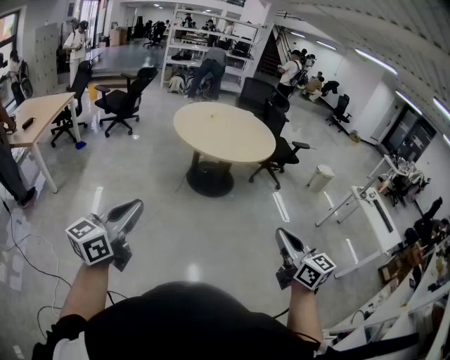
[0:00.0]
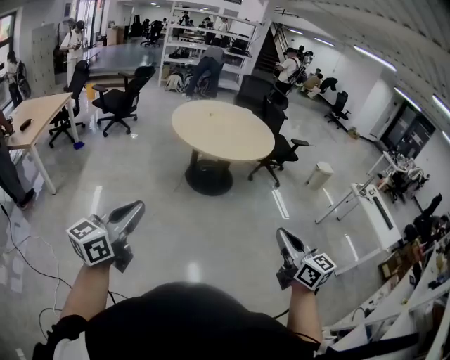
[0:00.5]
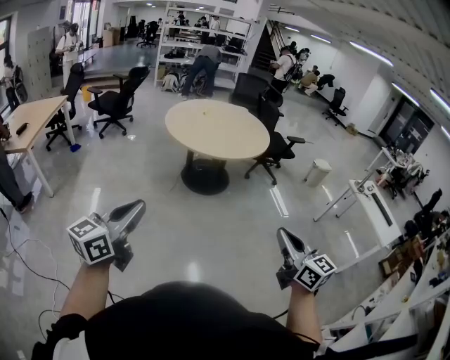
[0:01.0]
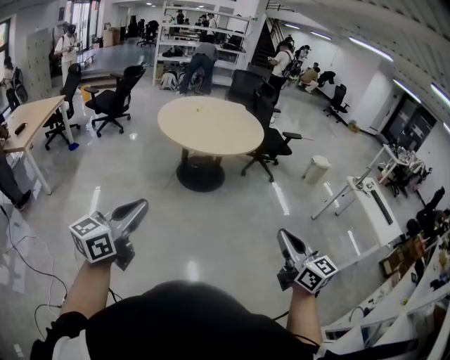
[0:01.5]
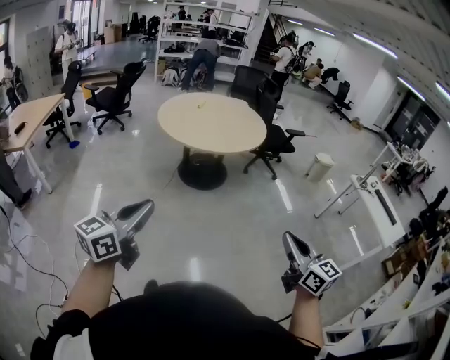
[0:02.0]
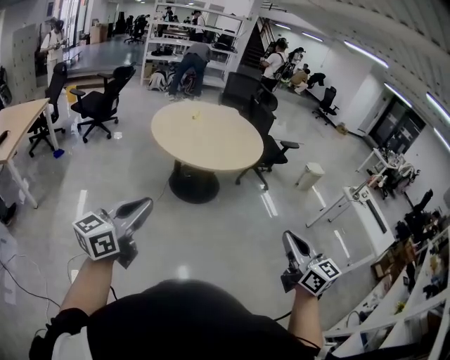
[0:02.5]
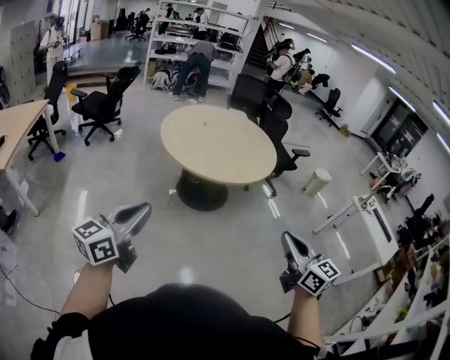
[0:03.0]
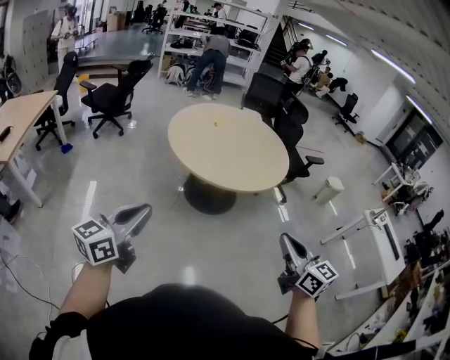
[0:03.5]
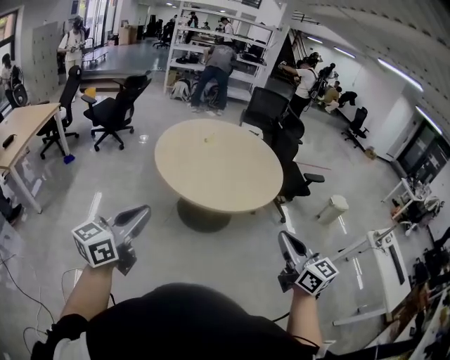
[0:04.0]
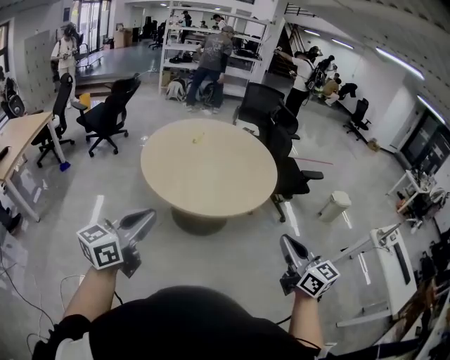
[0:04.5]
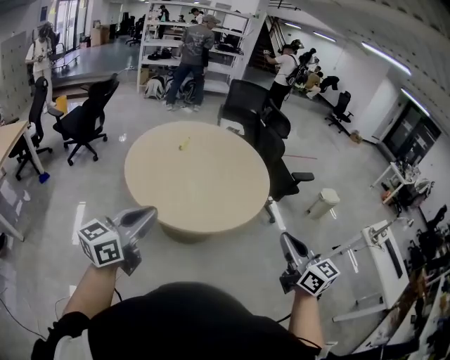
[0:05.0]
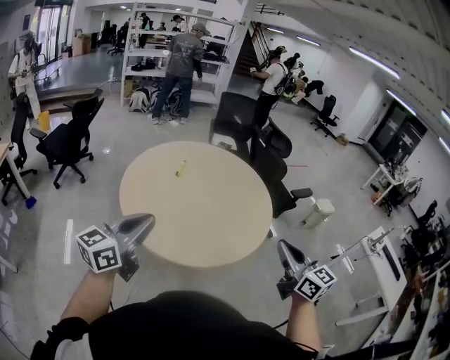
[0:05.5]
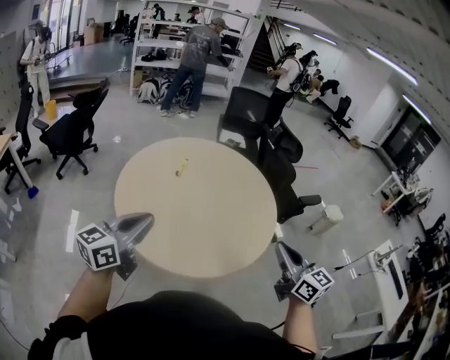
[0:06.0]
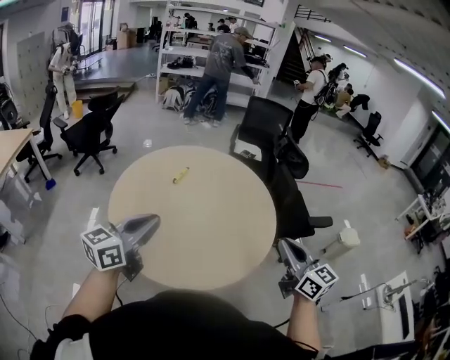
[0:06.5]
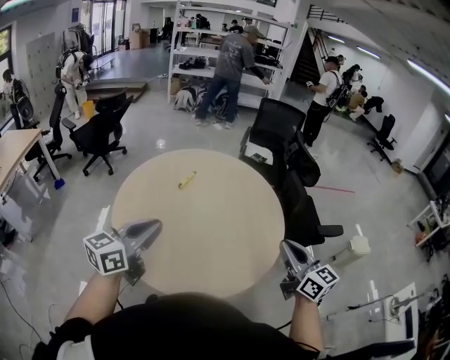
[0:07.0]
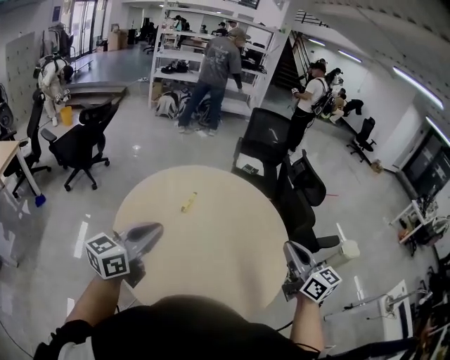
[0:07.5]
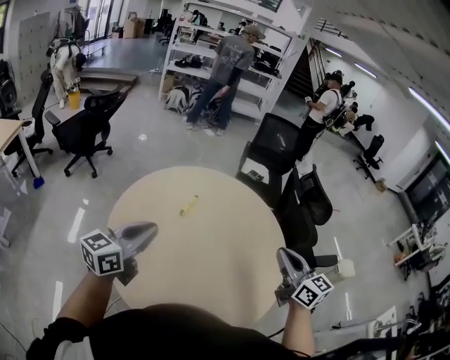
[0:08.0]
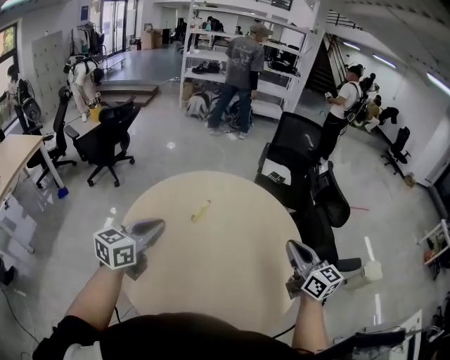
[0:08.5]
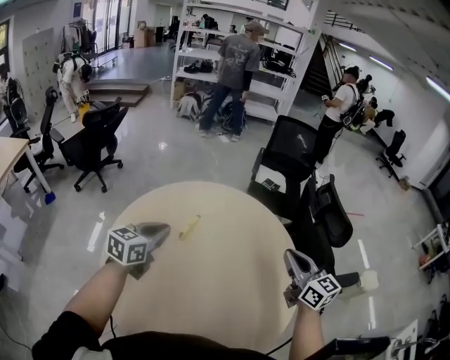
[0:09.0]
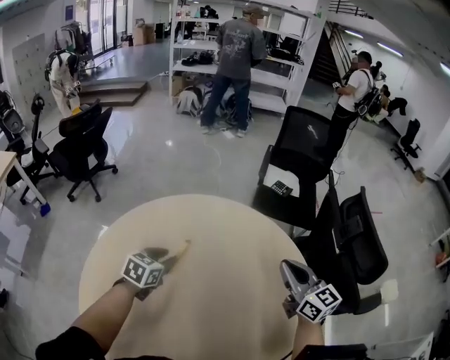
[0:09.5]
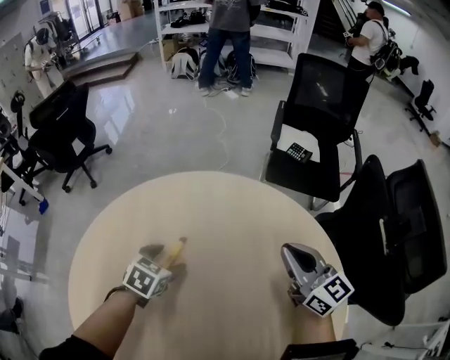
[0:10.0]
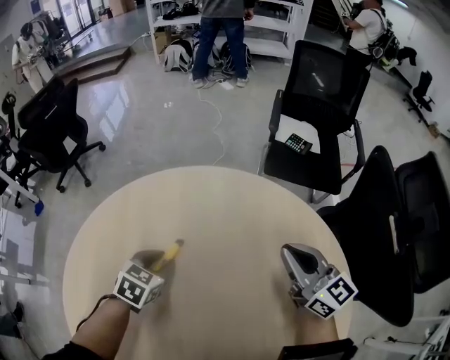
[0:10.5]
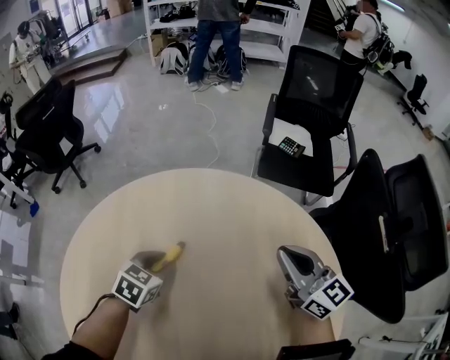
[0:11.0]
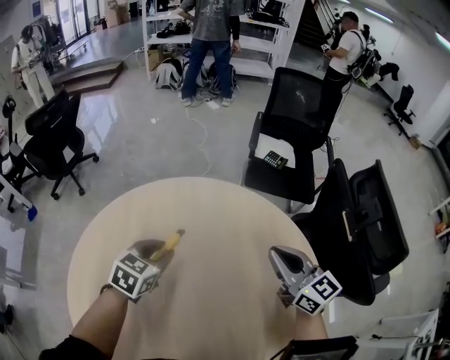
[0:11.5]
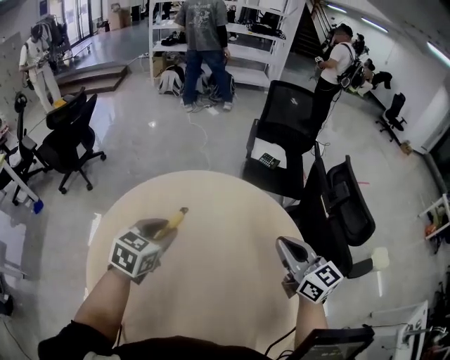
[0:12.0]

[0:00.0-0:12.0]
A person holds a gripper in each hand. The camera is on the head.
0:00.0 to 0:02.0: Both grippers move to the right, approximately 15 cm.
0:02.0 to 0:04.0: Both grippers move forward, some 40 cm.
0:04.0 to 0:06.0: The grippers both shift forward by approximately 40 cm.
0:06.0 to 0:08.0: The two grippers go approximately 25 cm forward.
0:08.0 to 0:10.0: The left gripper shifts approximately 50 cm downward and forward, tilts its fingers some 50 degrees downward, and opens up; the right gripper is displaced forward and downward by some 50 cm.
0:10.0 to 0:12.0: The right gripper goes roughly 20 cm upward and backward. Meanwhile the left gripper goes some 25 cm upward, rotates roughly 20 degrees, and closes up.

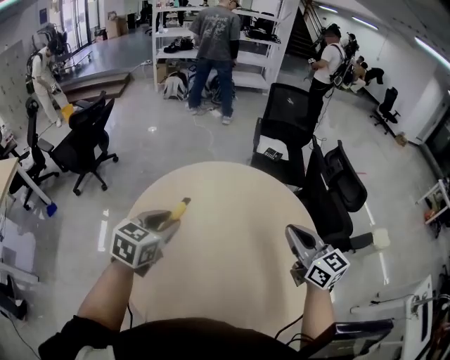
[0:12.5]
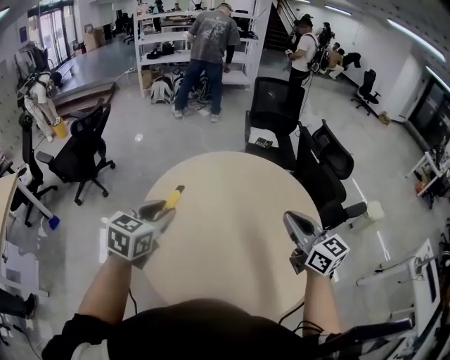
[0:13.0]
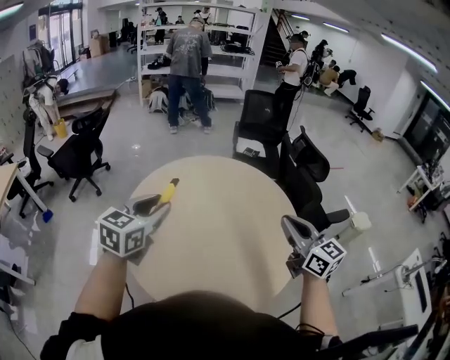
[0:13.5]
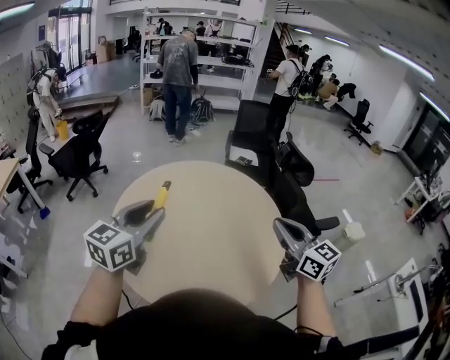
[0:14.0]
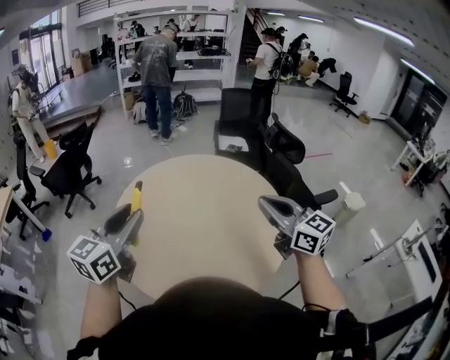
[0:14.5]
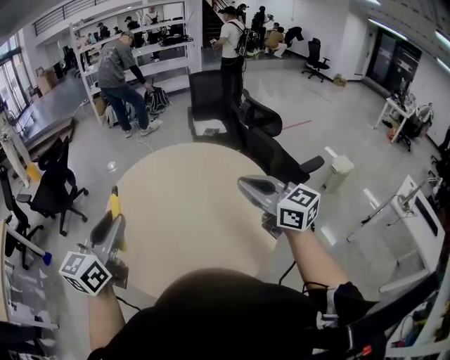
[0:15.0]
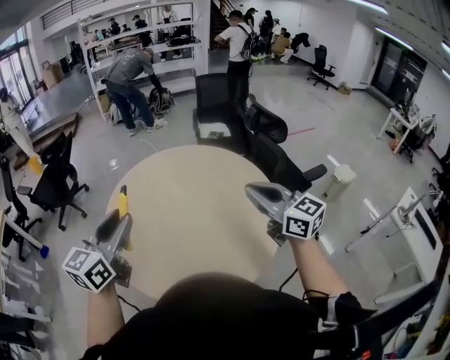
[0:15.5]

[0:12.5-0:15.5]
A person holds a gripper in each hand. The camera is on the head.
0:12.5 to 0:14.0: The grippers both shift backward and upward by roughly 25 cm. The left gripper turns by some 30 degrees.
0:14.0 to 0:15.5: The grippers make only small movements.

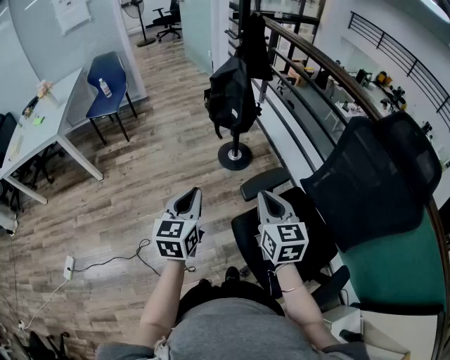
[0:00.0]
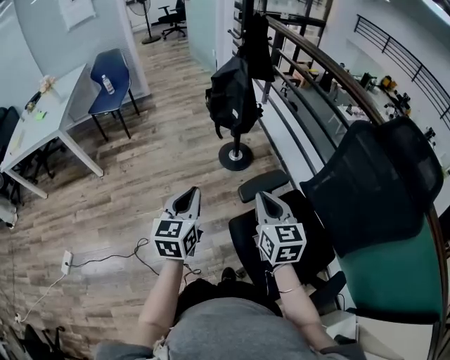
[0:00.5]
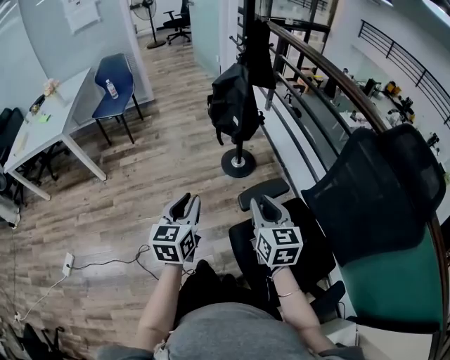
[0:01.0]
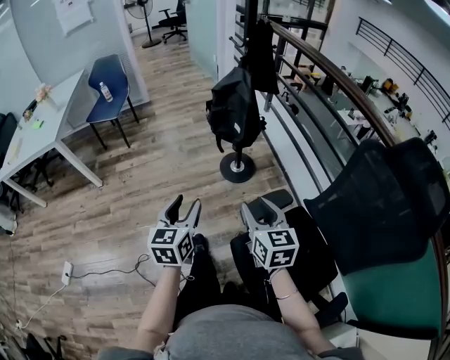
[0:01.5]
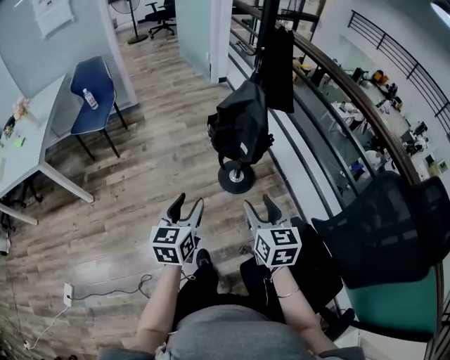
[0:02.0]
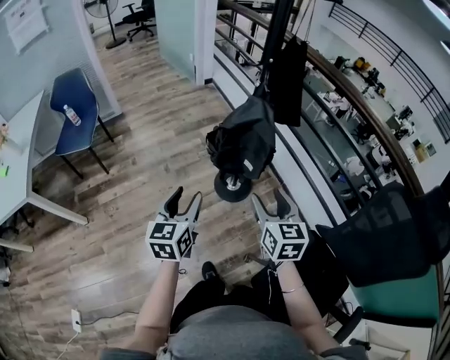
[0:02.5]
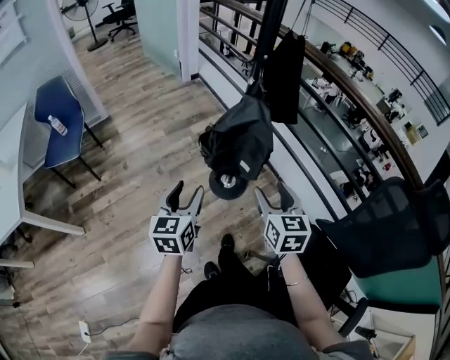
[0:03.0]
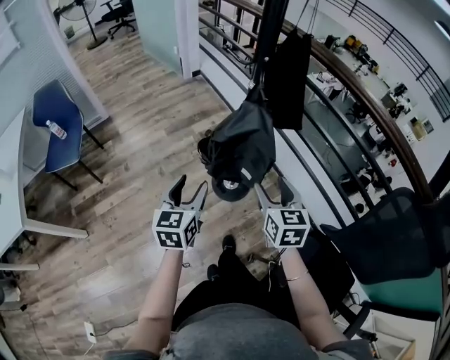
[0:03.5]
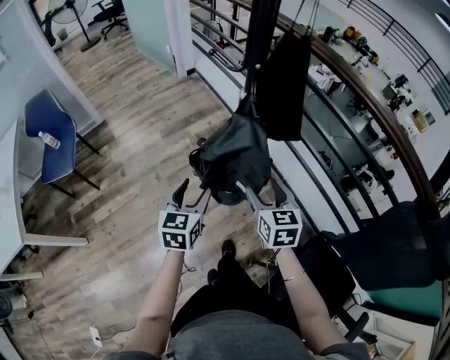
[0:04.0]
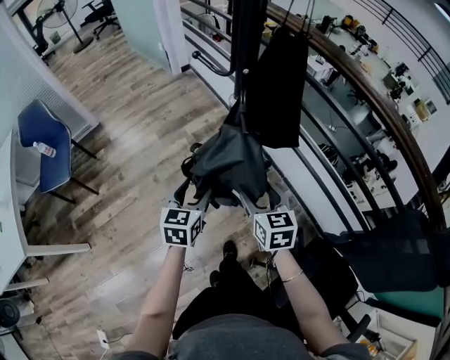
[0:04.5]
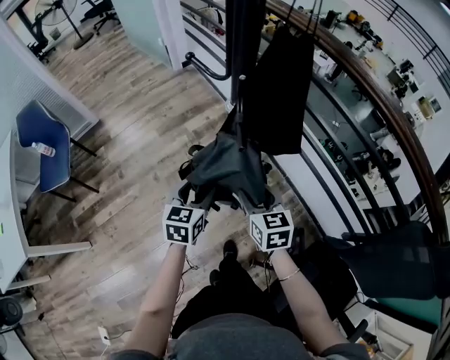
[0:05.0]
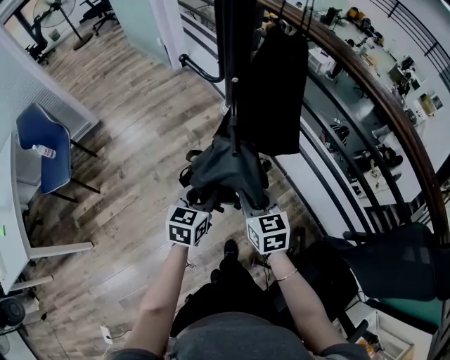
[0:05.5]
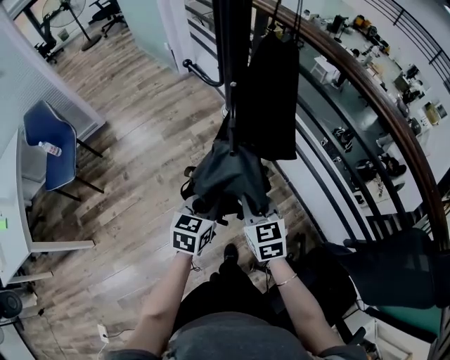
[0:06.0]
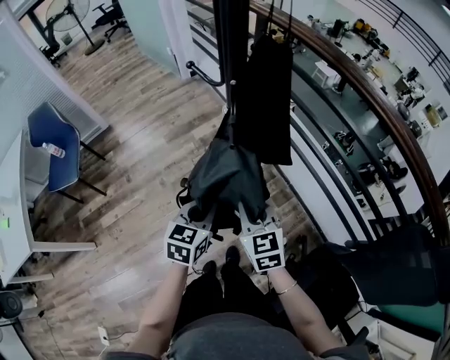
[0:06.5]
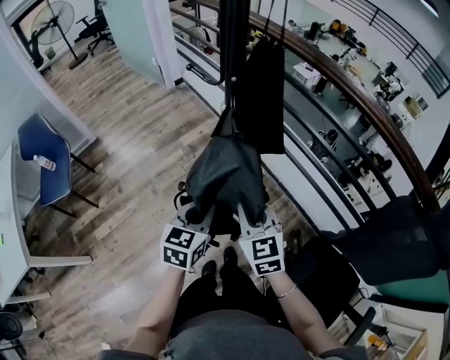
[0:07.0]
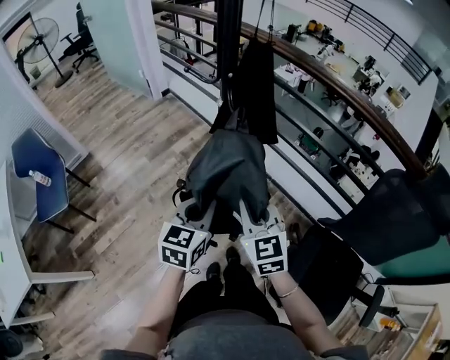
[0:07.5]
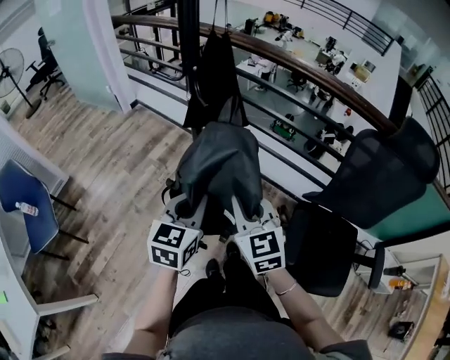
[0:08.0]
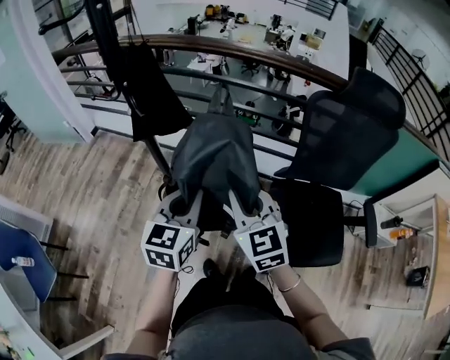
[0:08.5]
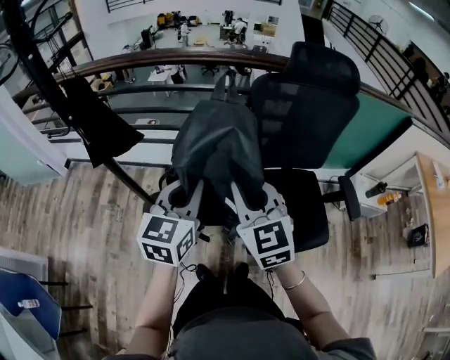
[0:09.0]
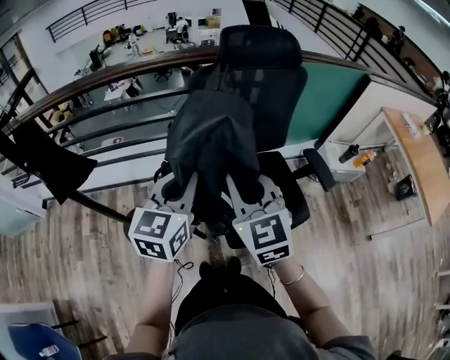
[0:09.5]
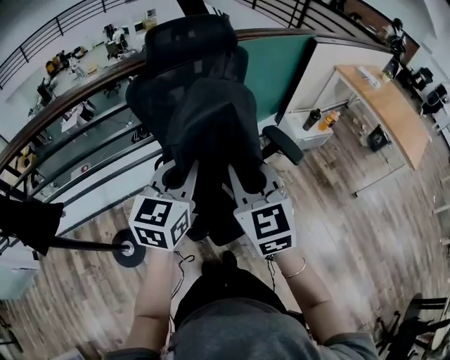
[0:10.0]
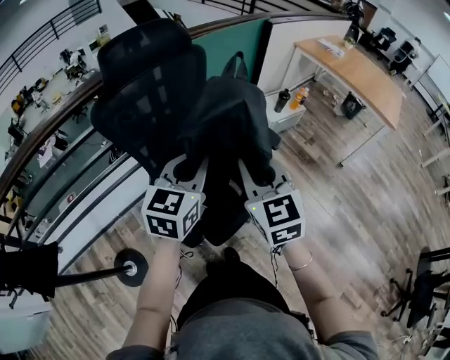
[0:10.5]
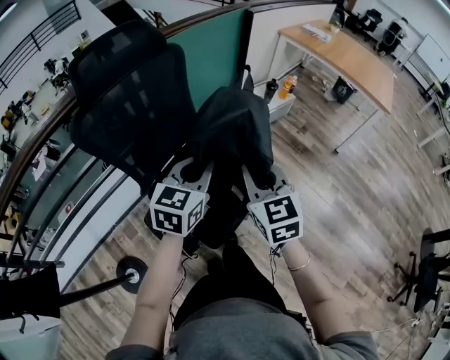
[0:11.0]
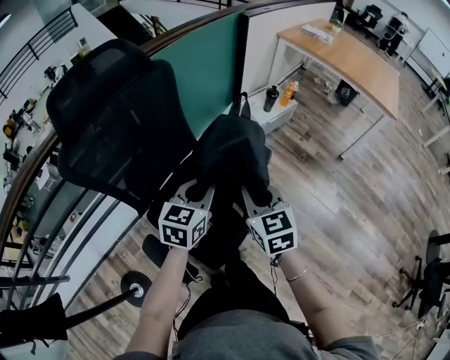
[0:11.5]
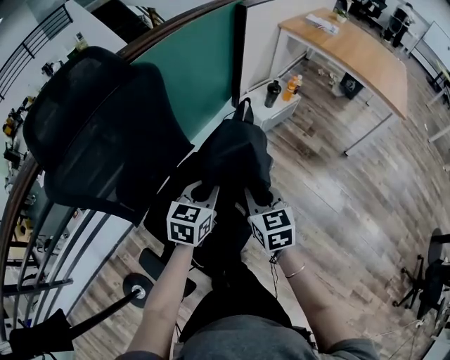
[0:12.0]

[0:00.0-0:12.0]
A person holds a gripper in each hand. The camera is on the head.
0:00.0 to 0:02.0: Both grippers travel together forward, approximately 25 cm. The right gripper opens. Meanwhile the left gripper opens its fingers.
0:02.0 to 0:04.0: The two grippers go approximately 25 cm forward.
0:04.0 to 0:06.0: The left gripper shifts about 10 cm to the right, and closes. The right gripper shifts by some 5 cm, and closes up.
0:06.0 to 0:08.0: The right gripper travels backward and upward by roughly 20 cm, and turns by about 20 degrees. The left gripper moves upward and backward, some 20 cm, and changes its angle by some 30 degrees.
0:08.0 to 0:10.0: Both grippers are carried roughly 50 cm. The left gripper changes its angle by roughly 60 degrees, while the right gripper swivels about 60 degrees.
0:10.0 to 0:12.0: The right gripper shifts approximately 35 cm downward, forward and to the right, and swivels approximately 30 degrees, while the left gripper shifts approximately 35 cm forward, downward and to the right, and rotates about 30 degrees.
